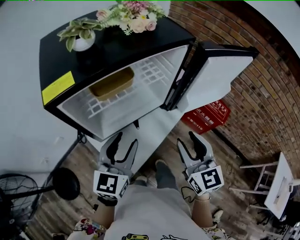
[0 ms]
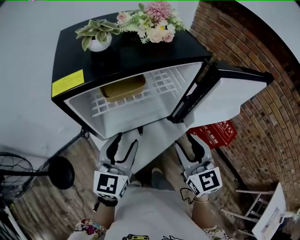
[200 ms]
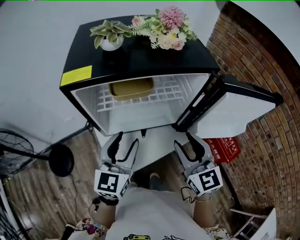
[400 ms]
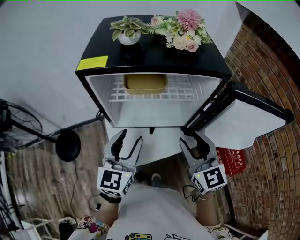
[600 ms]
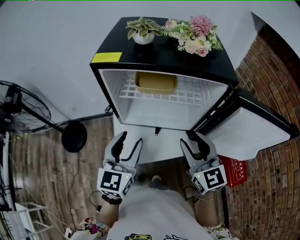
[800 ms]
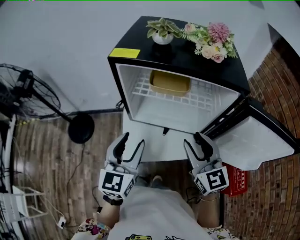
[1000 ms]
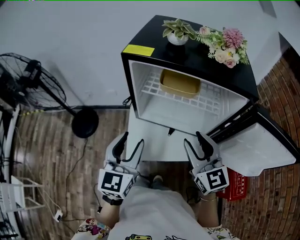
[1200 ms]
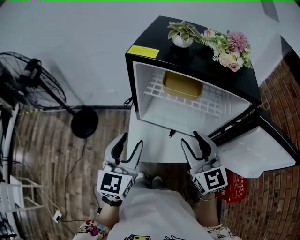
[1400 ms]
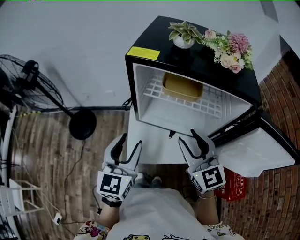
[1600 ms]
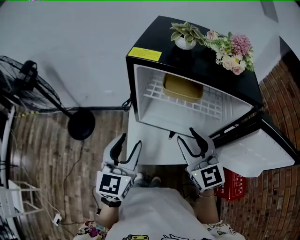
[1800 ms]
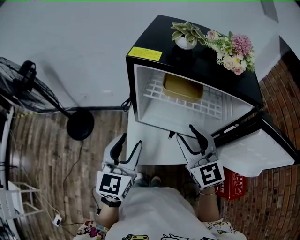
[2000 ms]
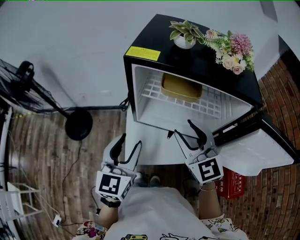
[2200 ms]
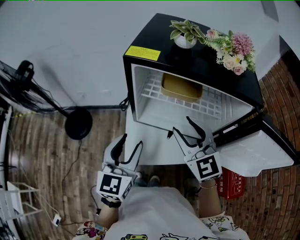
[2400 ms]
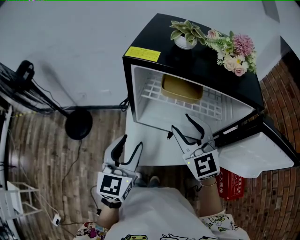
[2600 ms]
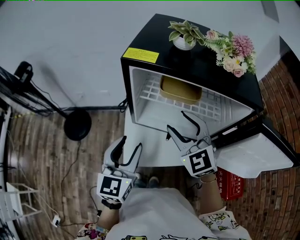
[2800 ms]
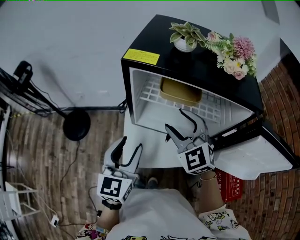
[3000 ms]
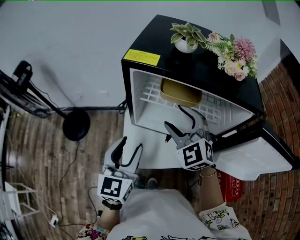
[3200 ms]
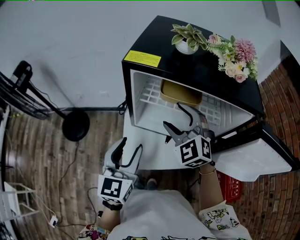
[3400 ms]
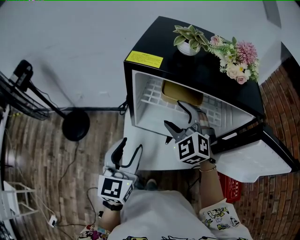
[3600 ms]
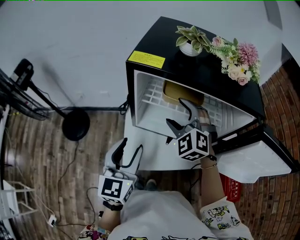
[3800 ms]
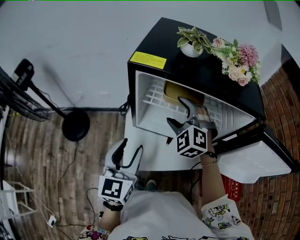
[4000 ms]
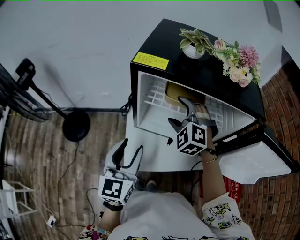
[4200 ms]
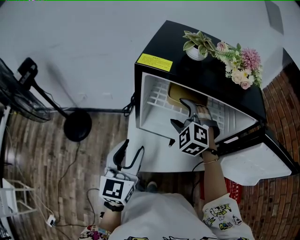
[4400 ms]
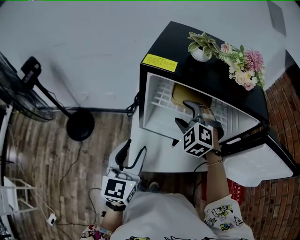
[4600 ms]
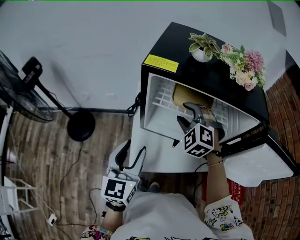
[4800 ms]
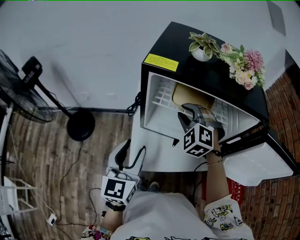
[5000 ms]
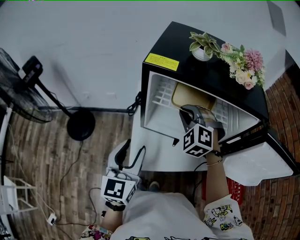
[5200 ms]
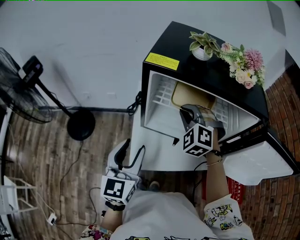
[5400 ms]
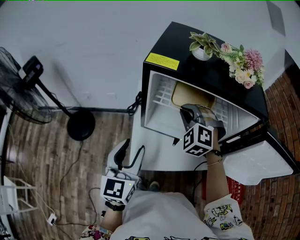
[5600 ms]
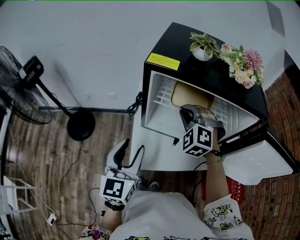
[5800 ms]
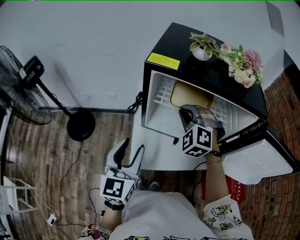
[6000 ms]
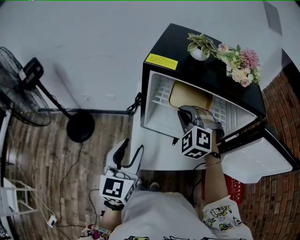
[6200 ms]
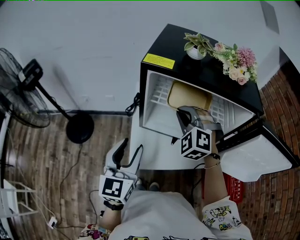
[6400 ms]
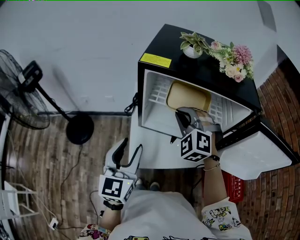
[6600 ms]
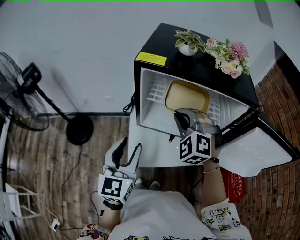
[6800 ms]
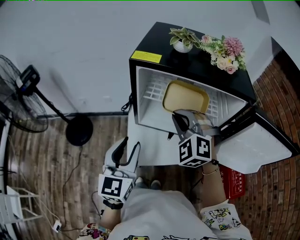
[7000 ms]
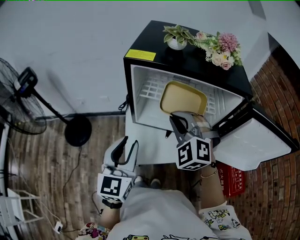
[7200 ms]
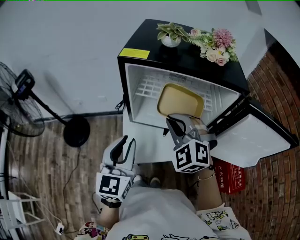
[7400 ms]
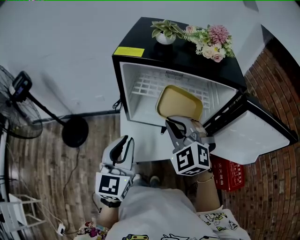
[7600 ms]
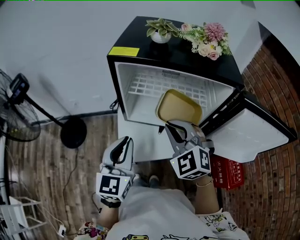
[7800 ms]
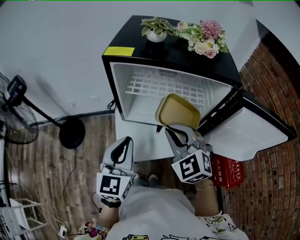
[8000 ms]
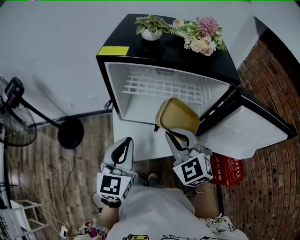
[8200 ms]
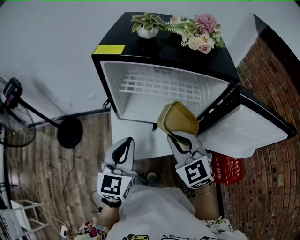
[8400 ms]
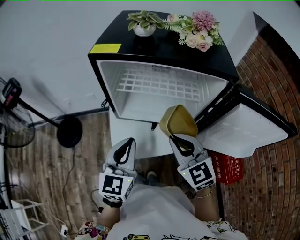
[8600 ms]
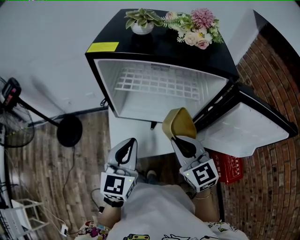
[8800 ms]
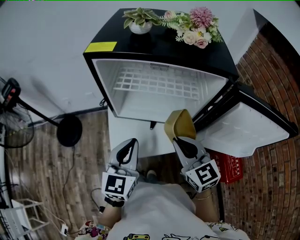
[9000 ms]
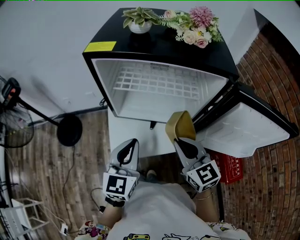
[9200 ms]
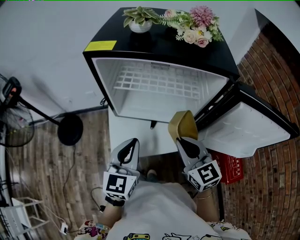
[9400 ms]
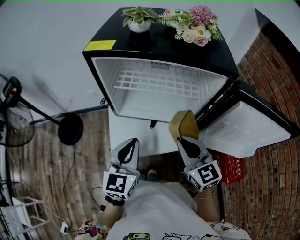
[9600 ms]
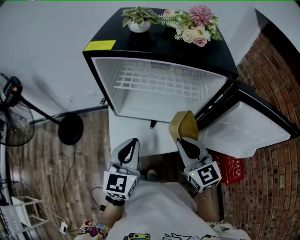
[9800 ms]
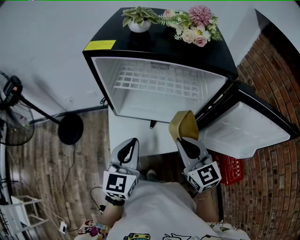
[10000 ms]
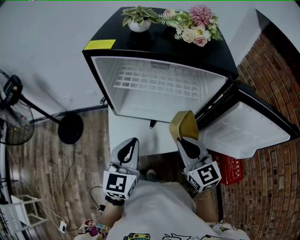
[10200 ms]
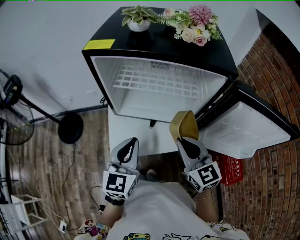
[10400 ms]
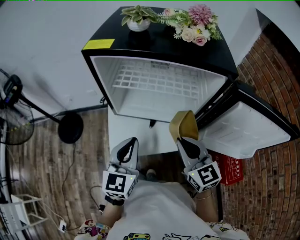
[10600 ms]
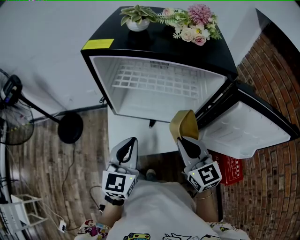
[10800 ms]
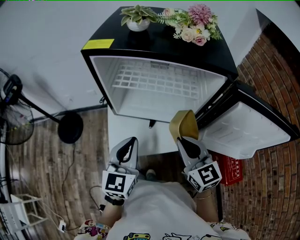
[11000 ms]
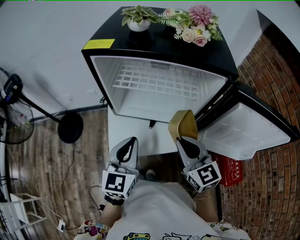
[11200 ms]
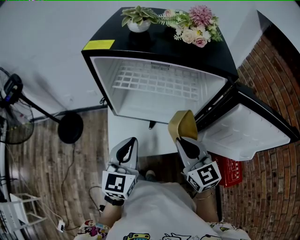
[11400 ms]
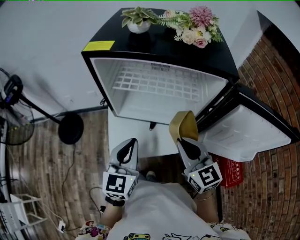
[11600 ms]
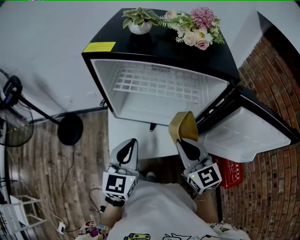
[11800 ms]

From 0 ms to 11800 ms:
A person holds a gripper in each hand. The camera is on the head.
From 0 ms to 1400 ms: The left gripper changes place by approximately 10 cm, and rotates roughly 50 degrees. Meanwhile the right gripper moves about 10 cm, and swivels about 50 degrees.
From 1400 ms to 3000 ms: The right gripper shifts approximately 10 cm forward, and turns by approximately 30 degrees.
From 3000 ms to 4400 ms: The right gripper moves forward, about 5 cm, and swivels some 30 degrees.
From 4400 ms to 6000 ms: The right gripper closes its fingers.
From 6000 ms to 7400 ms: The right gripper goes some 10 cm backward. The left gripper closes its fingers.
From 7400 ms to 8800 ms: The right gripper goes some 10 cm to the right and backward, and rolls clockwise, seen from behind, by approximately 40 degrees. The left gripper moves to the right, some 10 cm.
From 8800 ms to 10400 ms: There are only small adjustments of the grippers.
From 10400 ms to 11800 ms: Neither gripper changes place.

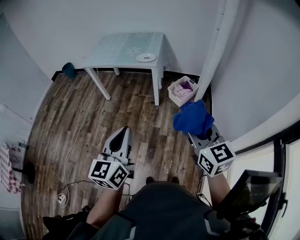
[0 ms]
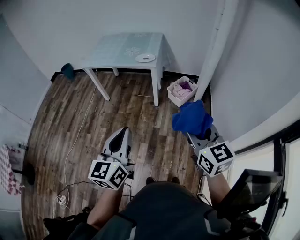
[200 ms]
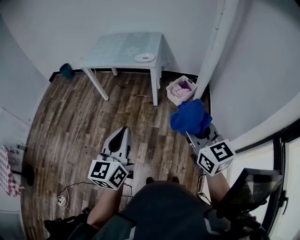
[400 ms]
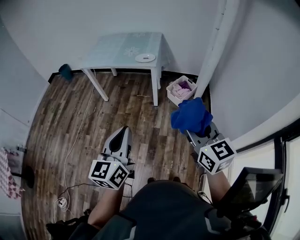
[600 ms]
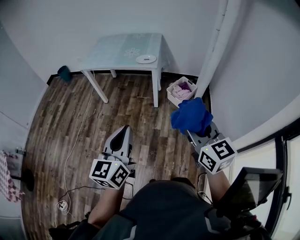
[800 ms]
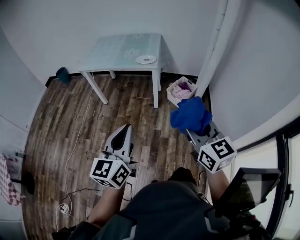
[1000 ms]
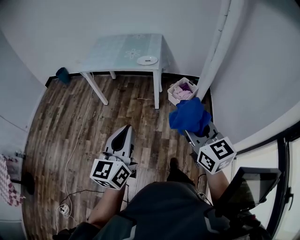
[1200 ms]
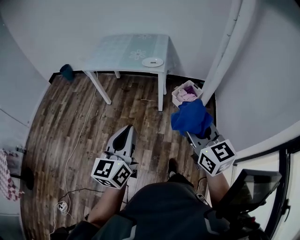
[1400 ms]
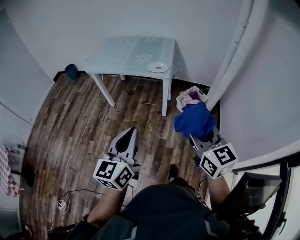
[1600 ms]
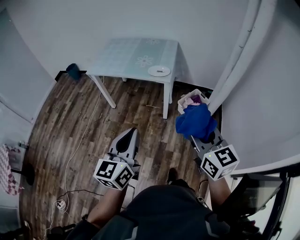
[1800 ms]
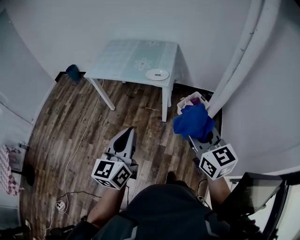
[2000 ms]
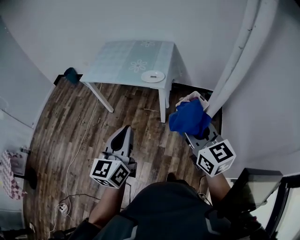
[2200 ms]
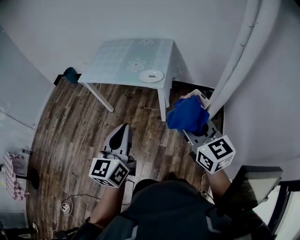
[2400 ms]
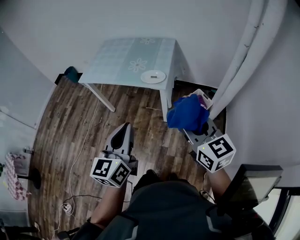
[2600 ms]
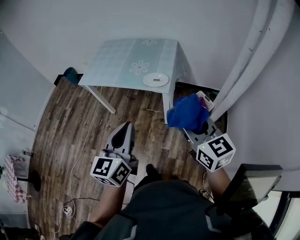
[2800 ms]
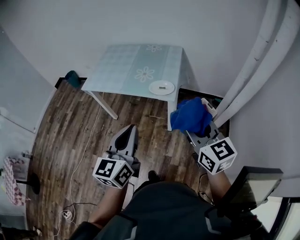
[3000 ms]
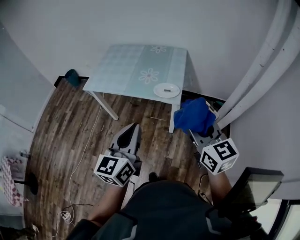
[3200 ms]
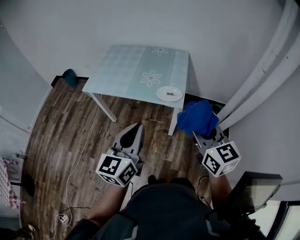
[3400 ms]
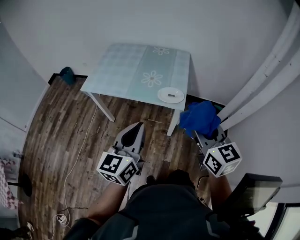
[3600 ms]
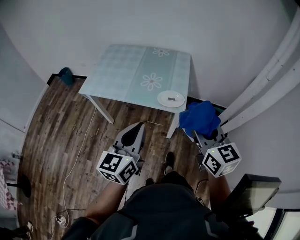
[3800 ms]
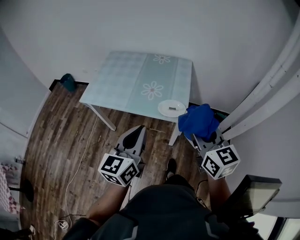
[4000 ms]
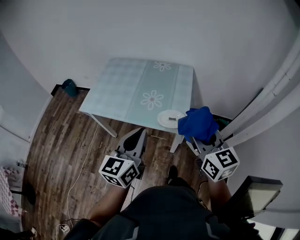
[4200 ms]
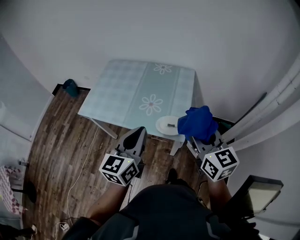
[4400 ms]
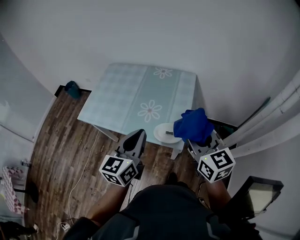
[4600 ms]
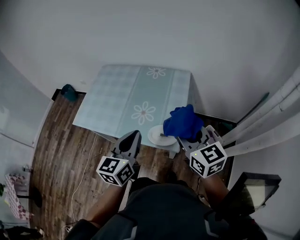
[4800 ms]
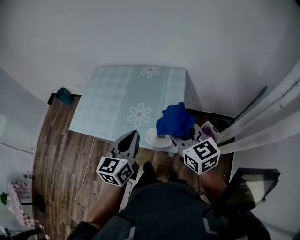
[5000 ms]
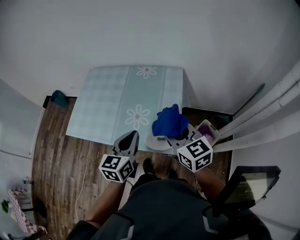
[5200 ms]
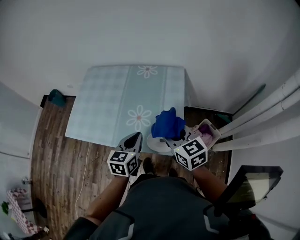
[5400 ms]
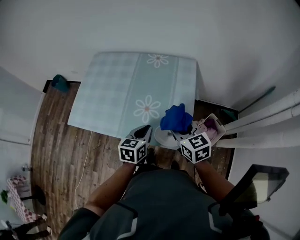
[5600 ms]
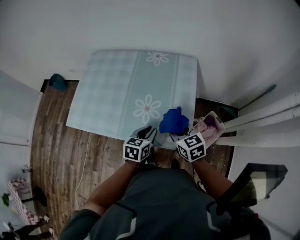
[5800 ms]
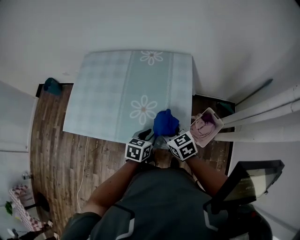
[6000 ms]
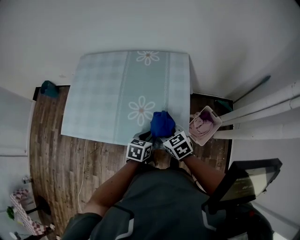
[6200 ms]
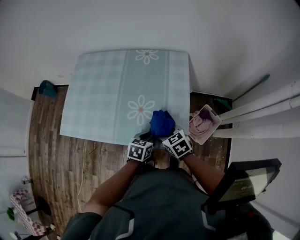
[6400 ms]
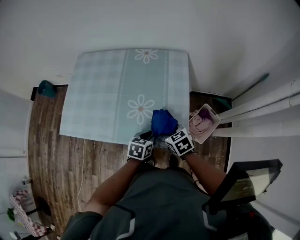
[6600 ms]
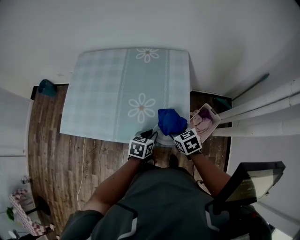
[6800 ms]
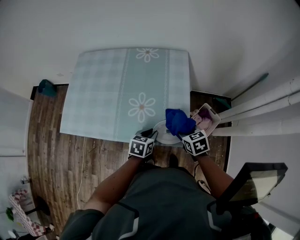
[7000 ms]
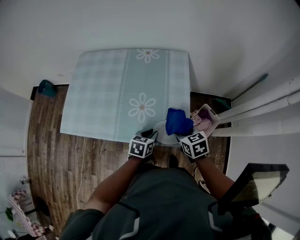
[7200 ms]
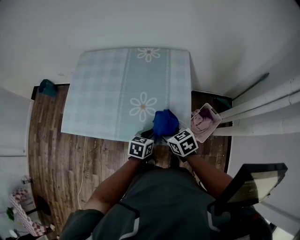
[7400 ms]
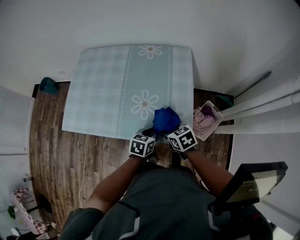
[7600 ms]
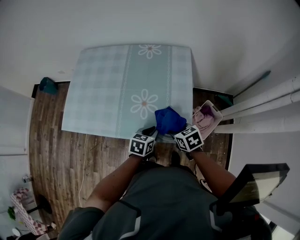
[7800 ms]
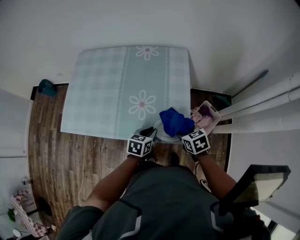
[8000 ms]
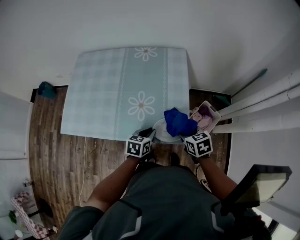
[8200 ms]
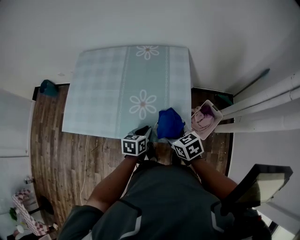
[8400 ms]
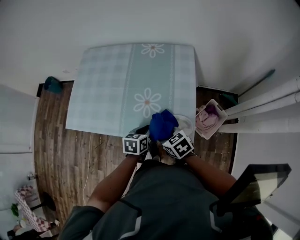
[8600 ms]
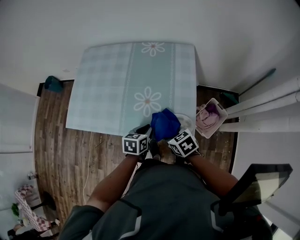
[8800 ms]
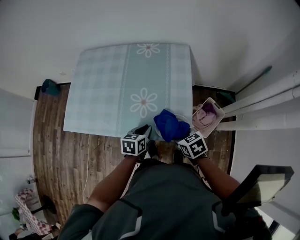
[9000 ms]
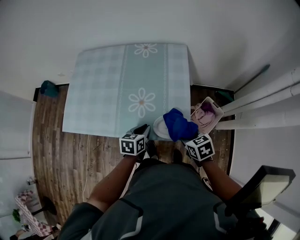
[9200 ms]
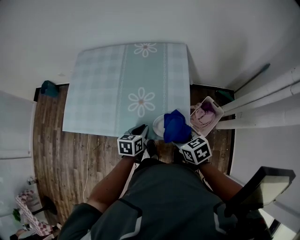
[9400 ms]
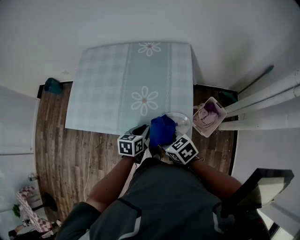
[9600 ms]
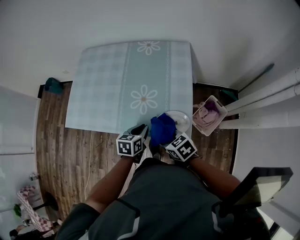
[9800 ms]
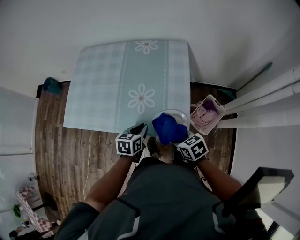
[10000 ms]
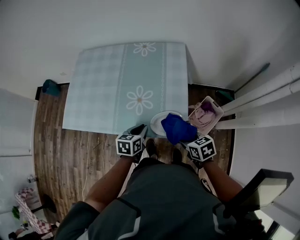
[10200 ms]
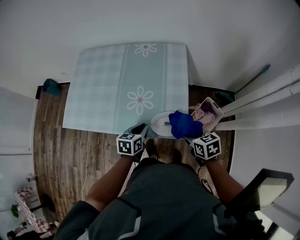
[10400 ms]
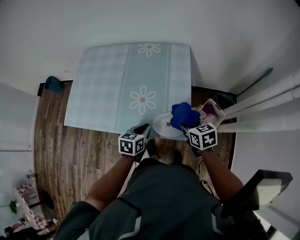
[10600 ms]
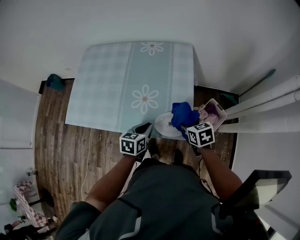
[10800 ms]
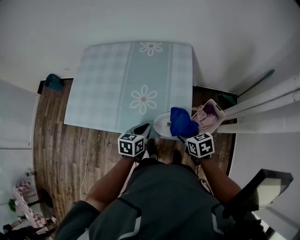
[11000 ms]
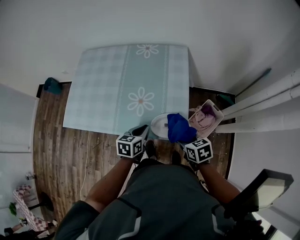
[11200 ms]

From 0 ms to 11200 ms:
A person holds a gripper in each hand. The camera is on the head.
From 0 ms to 1600 ms: The right gripper travels forward and to the left by approximately 15 cm. The left gripper is displaced forward by some 15 cm.
From 1600 ms to 3200 ms: Both grippers travel together forward, roughly 30 cm.
From 3200 ms to 4800 ms: The grippers both shift forward by roughly 30 cm.
From 4800 ms to 6400 ms: The right gripper travels downward and to the left by approximately 30 cm, and angles its fingers downward, by about 30 degrees. Meanwhile the left gripper heads downward, covering some 30 cm, tilts its fingers some 40 degrees downward, and opens.
From 6400 ms to 8000 ms: The right gripper goes left and right, about 10 cm each way, reversing 2 times.
From 8000 ms to 9600 ms: The right gripper goes left and right, roughly 15 cm each way, reversing 2 times, and changes its angle by about 20 degrees. Meanwhile the left gripper moves some 5 cm.
From 9600 ms to 11200 ms: The right gripper heads to the right, covering some 10 cm, and turns by some 20 degrees.

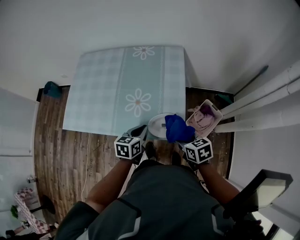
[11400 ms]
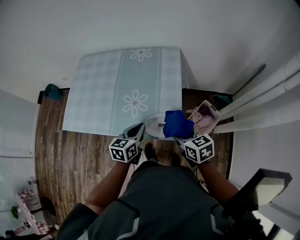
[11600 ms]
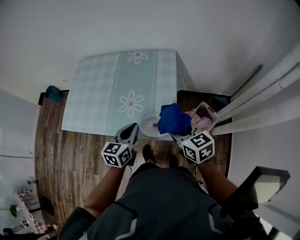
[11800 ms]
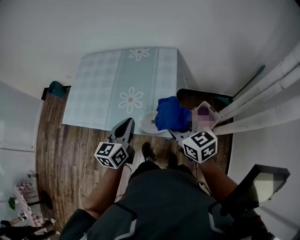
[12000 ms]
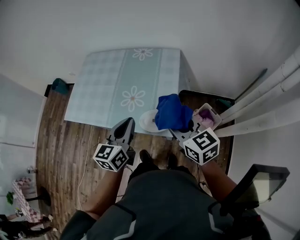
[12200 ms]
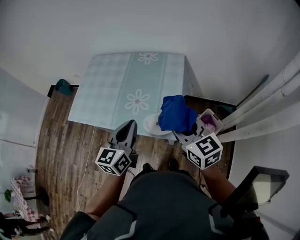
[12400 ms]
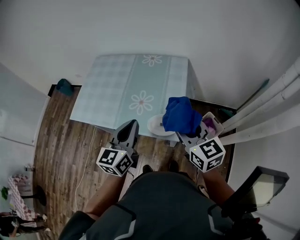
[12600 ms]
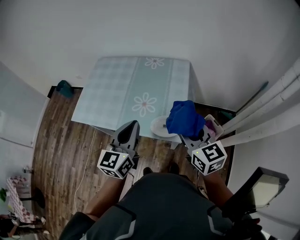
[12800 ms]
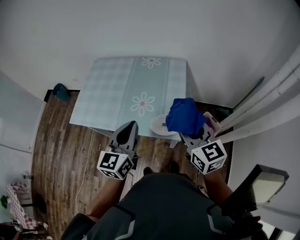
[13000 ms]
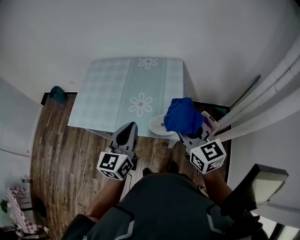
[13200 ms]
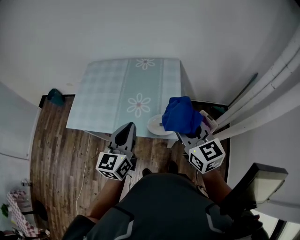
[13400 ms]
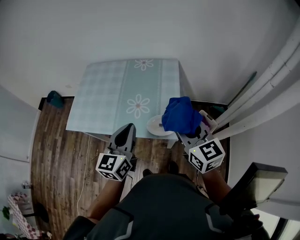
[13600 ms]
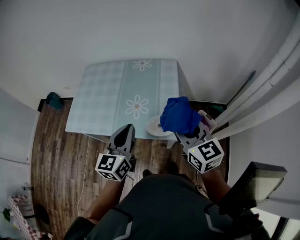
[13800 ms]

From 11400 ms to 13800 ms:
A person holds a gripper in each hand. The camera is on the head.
From 11400 ms to 12600 ms: Both grippers move upward, roughly 20 cm. The left gripper turns by about 30 degrees. The right gripper tilts its fingers approximately 30 degrees upward.
From 12600 ms to 13800 ms: The grippers move only a little.
